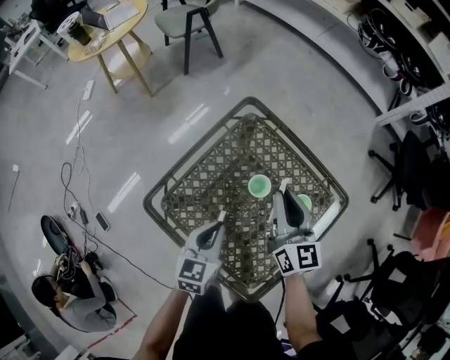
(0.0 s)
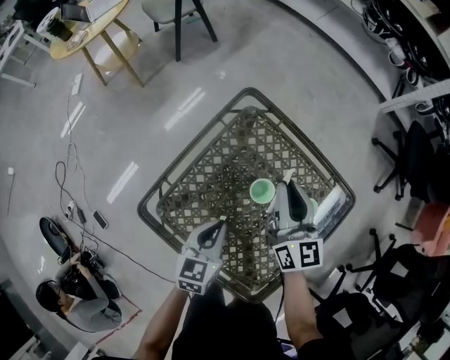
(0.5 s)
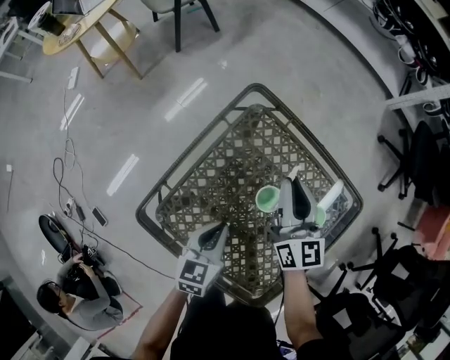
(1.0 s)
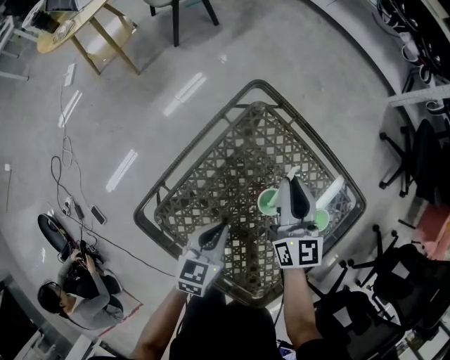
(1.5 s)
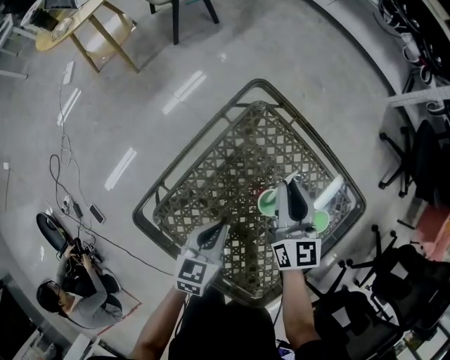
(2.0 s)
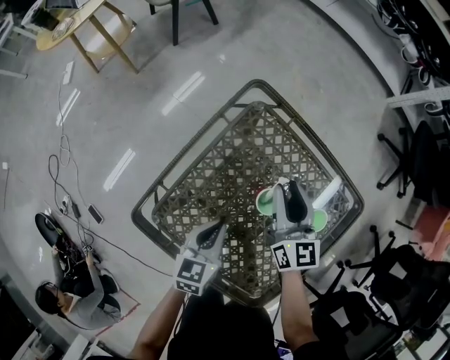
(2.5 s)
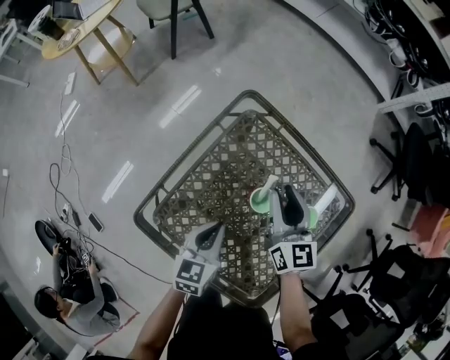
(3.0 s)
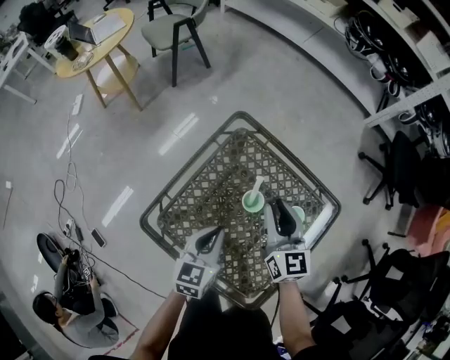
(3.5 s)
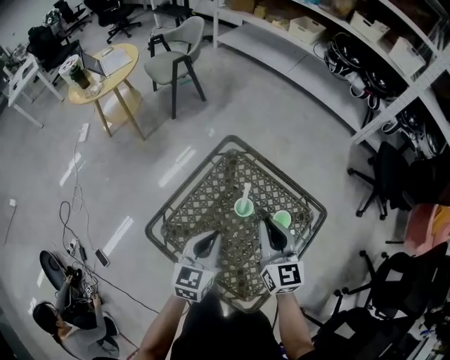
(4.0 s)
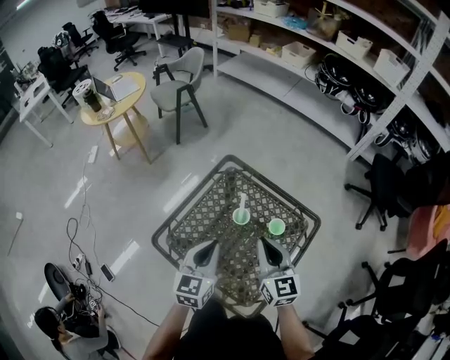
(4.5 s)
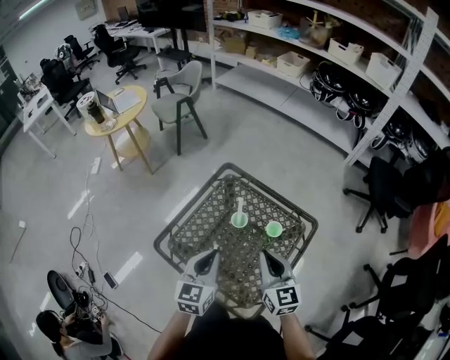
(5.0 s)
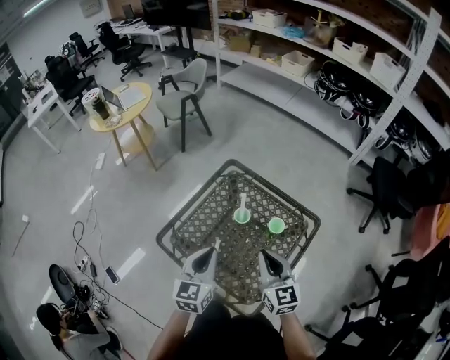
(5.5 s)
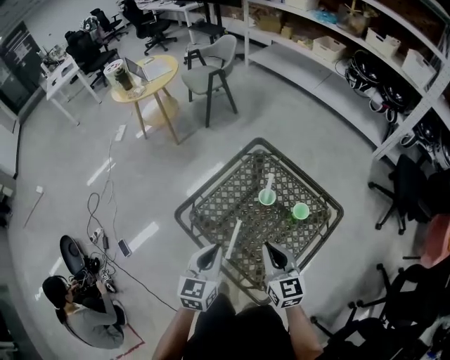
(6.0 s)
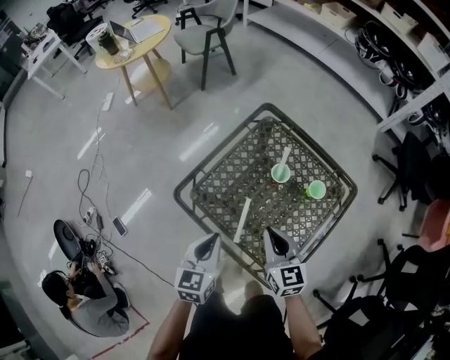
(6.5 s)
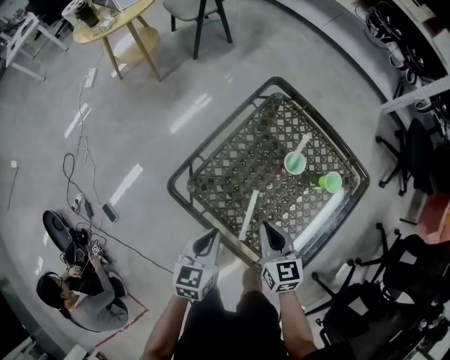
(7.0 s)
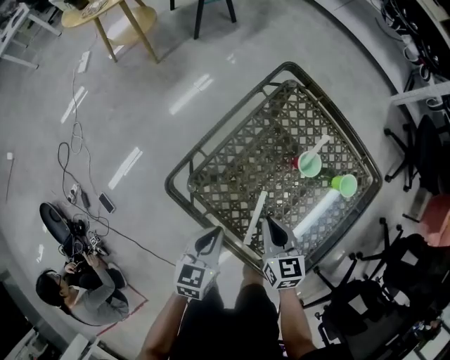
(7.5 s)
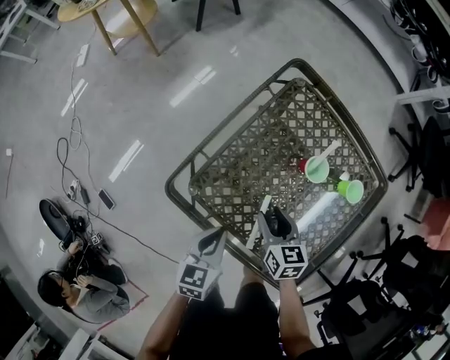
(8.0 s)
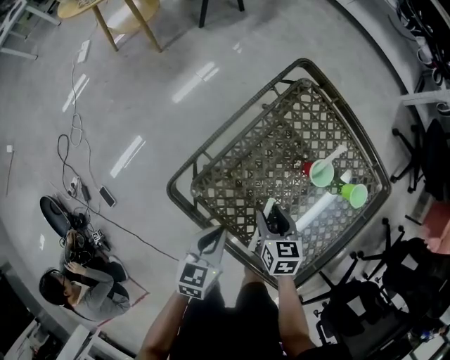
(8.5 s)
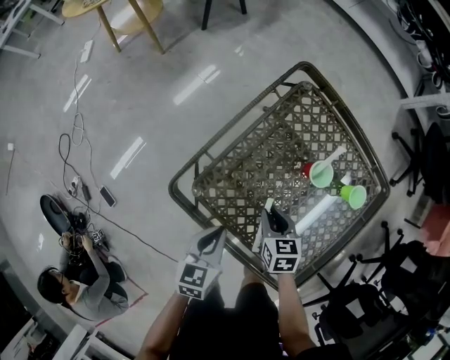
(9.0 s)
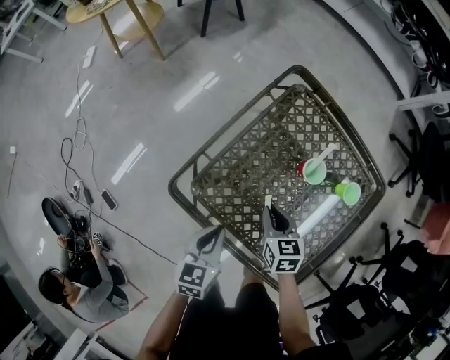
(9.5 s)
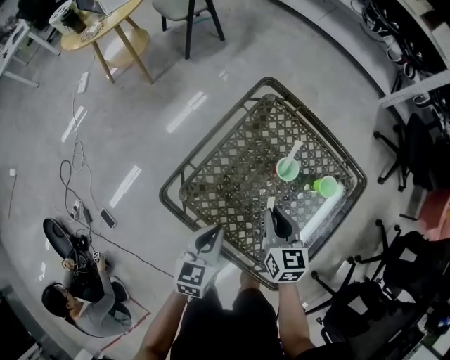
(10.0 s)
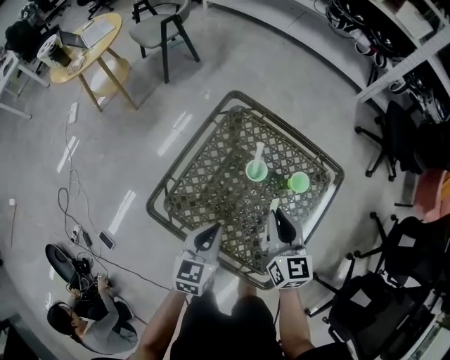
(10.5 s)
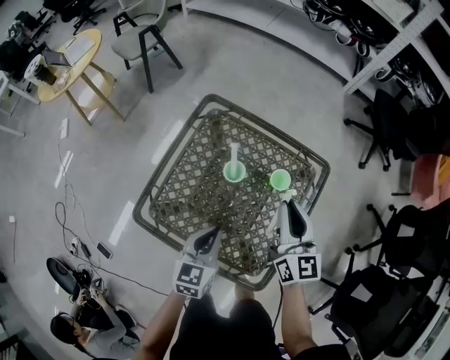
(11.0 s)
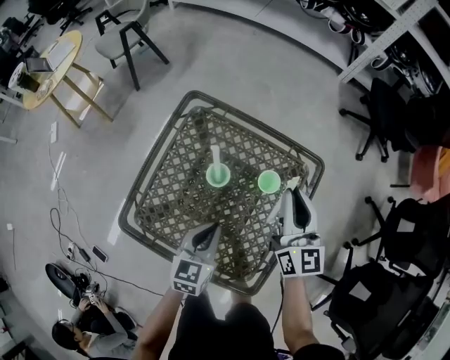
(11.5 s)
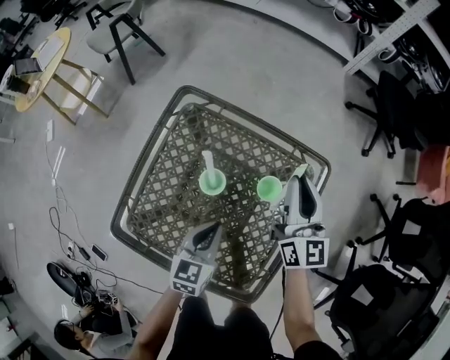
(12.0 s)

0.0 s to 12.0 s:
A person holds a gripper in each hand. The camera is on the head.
0.0 to 2.0 s: The grippers both shift downward and forward by roughly 15 cm.
2.0 to 4.0 s: The left gripper heads upward, covering some 20 cm; the right gripper goes about 20 cm upward and backward.
4.0 to 6.0 s: Both grippers travel together backward, about 15 cm.
6.0 to 8.0 s: The two grippers go some 25 cm downward. The left gripper changes its angle by roughly 20 degrees. The right gripper changes its angle by some 30 degrees, and opens.
8.0 to 10.0 s: The left gripper goes some 5 cm upward, while the right gripper moves upward and to the right, some 10 cm, and closes.
10.0 to 12.0 s: The right gripper is displaced to the right, forward and upward by some 30 cm, and angles its fingers upward, by roughly 30 degrees, while the left gripper shifts about 20 cm to the right and forward.

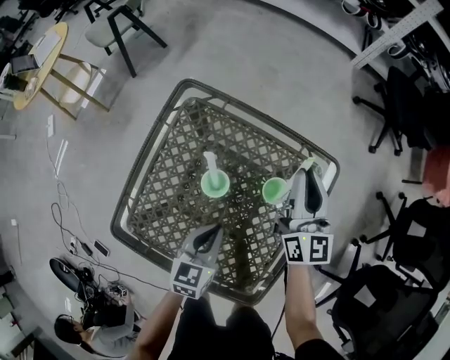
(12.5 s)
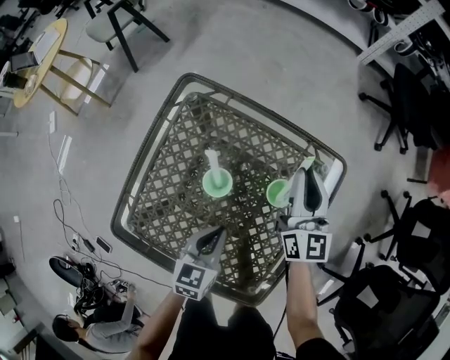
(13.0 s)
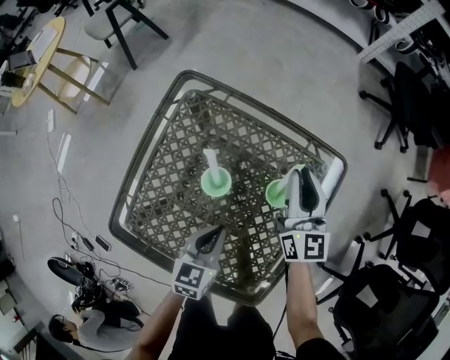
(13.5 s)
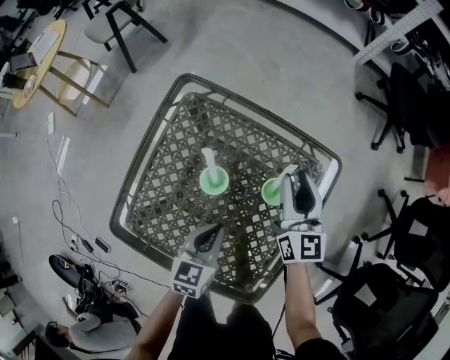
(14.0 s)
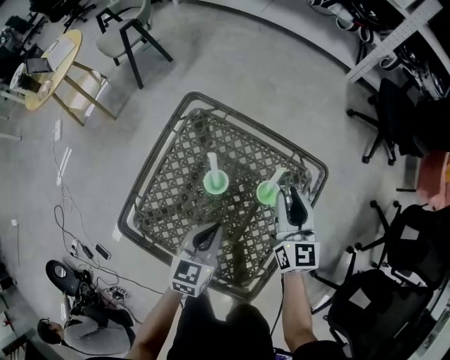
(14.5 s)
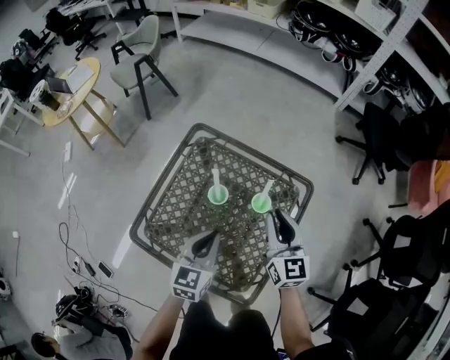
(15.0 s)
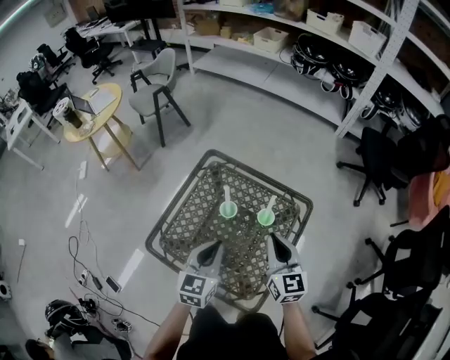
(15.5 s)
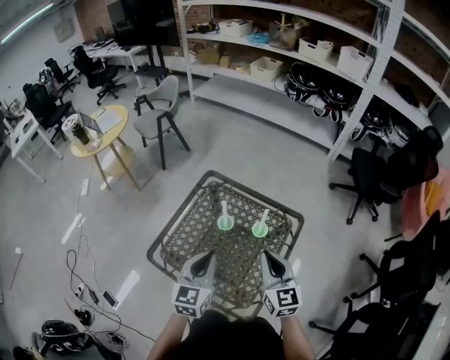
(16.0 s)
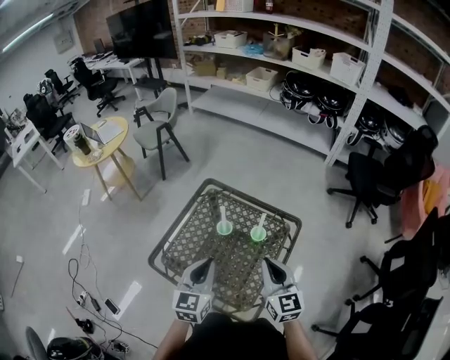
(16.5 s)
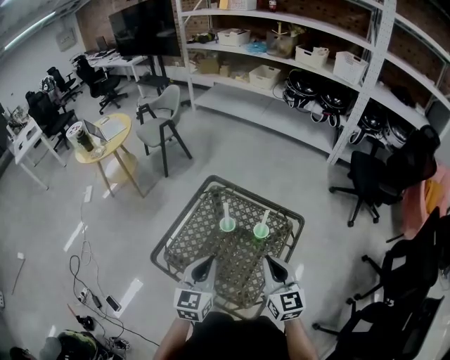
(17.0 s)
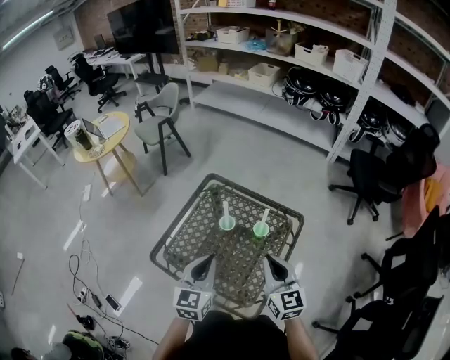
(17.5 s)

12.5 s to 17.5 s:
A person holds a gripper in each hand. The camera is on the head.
12.5 to 15.0 s: The left gripper travels upward by approximately 15 cm; the right gripper heads backward and upward, covering about 15 cm.
15.0 to 17.5 s: The left gripper is displaced upward and backward by roughly 15 cm; the right gripper travels backward and upward by approximately 20 cm.

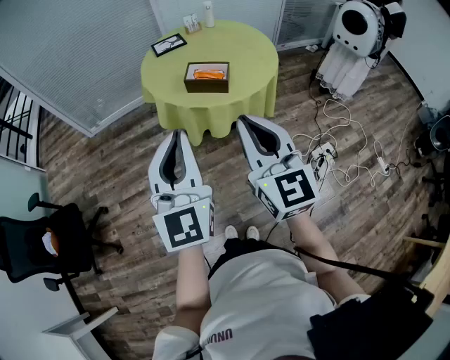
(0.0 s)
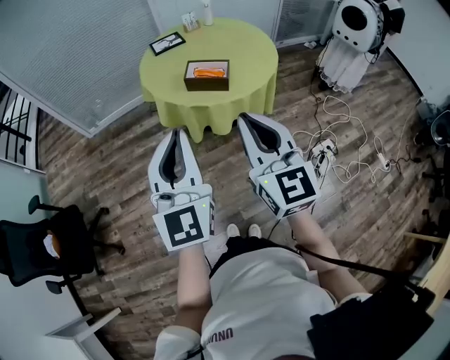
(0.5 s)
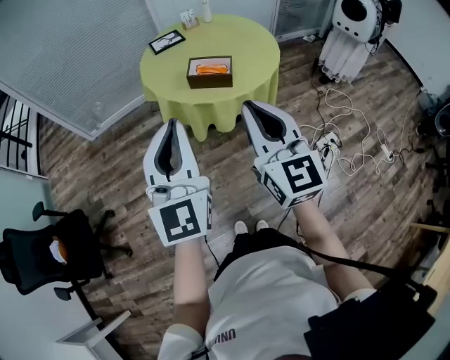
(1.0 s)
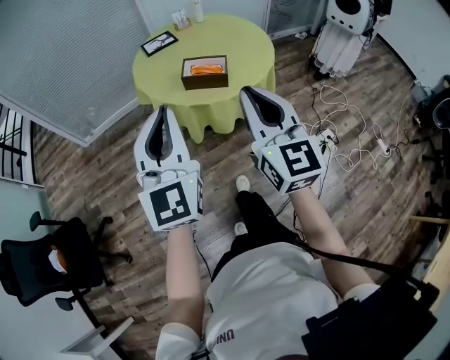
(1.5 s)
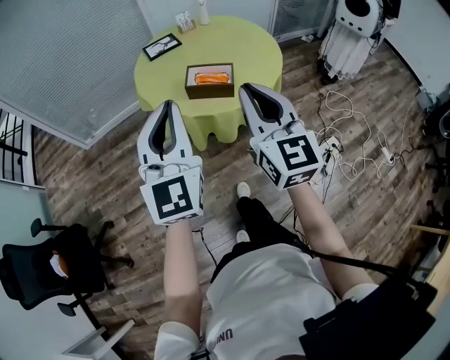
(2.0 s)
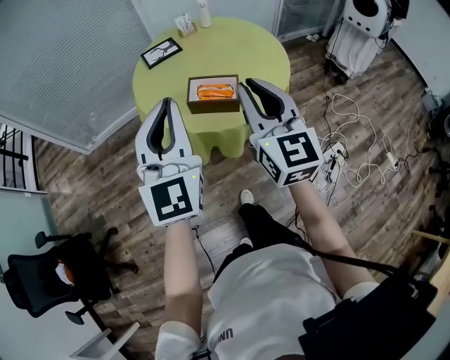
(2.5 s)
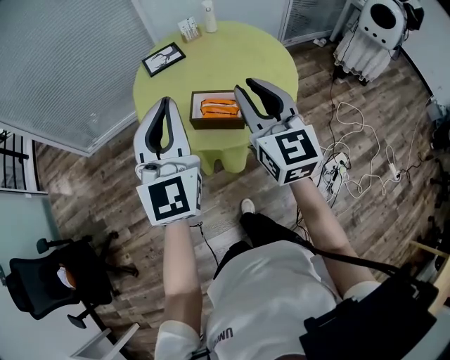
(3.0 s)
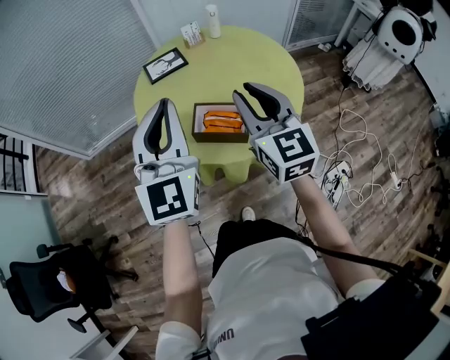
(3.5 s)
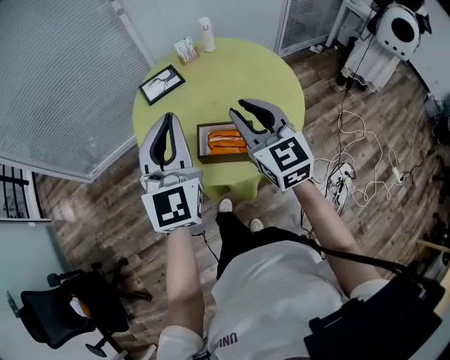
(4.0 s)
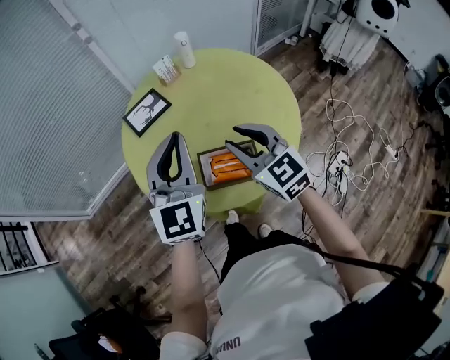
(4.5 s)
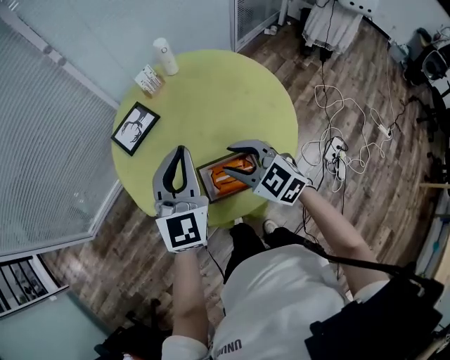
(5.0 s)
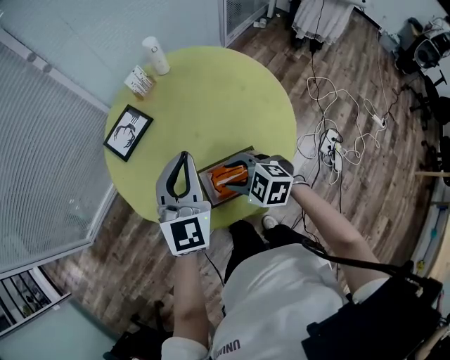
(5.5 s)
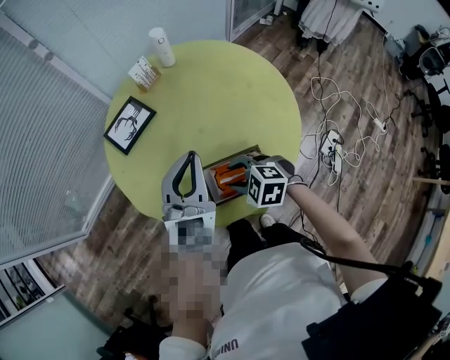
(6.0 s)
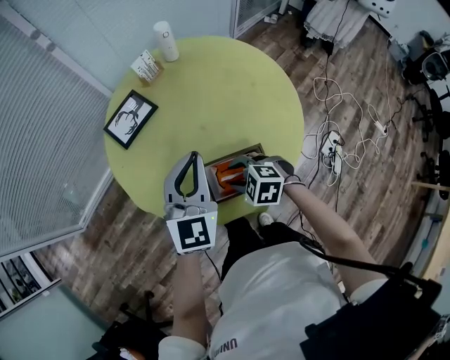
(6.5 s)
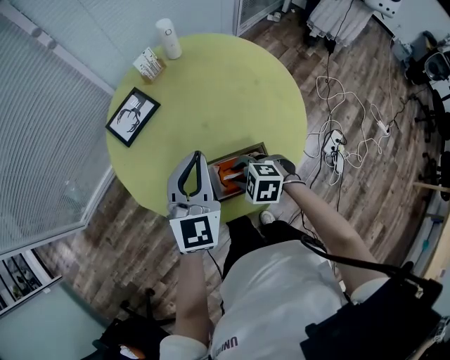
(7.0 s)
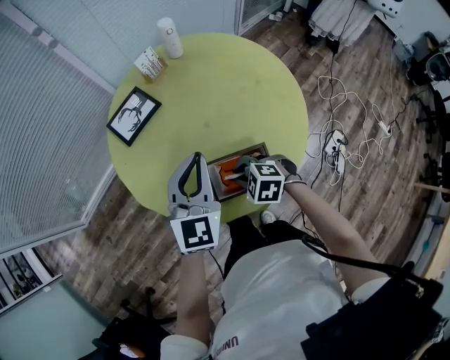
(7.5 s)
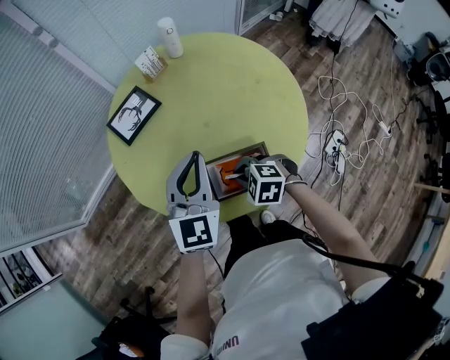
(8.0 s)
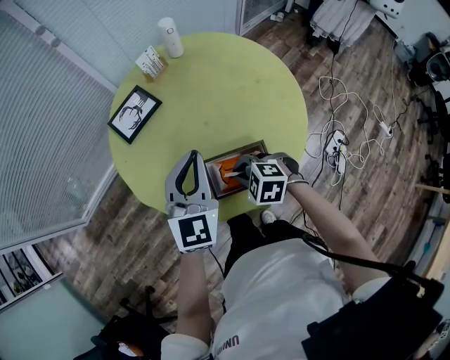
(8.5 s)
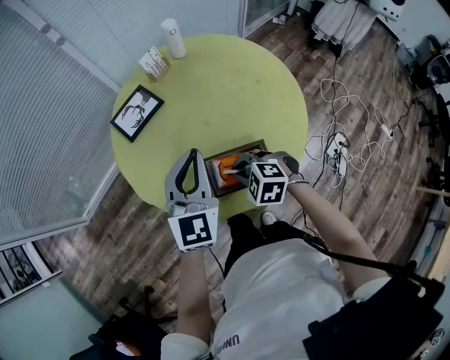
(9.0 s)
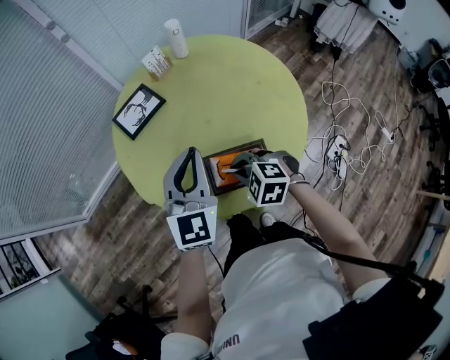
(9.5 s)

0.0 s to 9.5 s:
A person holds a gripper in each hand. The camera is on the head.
0.0 to 2.0 s: Both grippers travel together forward, roughly 10 cm.
2.0 to 4.0 s: Both grippers move forward, about 25 cm.
4.0 to 5.5 s: The left gripper moves downward and forward, some 15 cm, and turns by roughly 30 degrees, while the right gripper moves downward, about 20 cm, tips its fingers downward by roughly 40 degrees, and opens its fingers.
5.5 to 7.5 s: The right gripper moves downward, approximately 5 cm, and closes up.
7.5 to 9.5 s: There are only small adjustments of the grippers.
